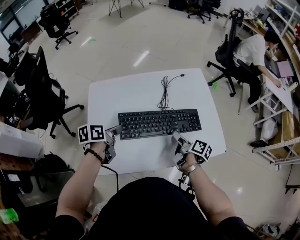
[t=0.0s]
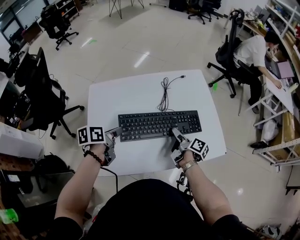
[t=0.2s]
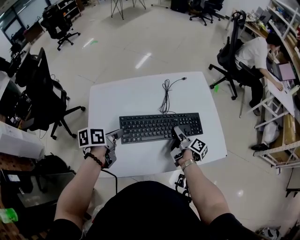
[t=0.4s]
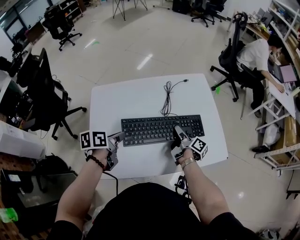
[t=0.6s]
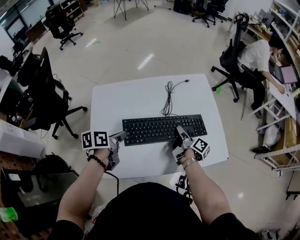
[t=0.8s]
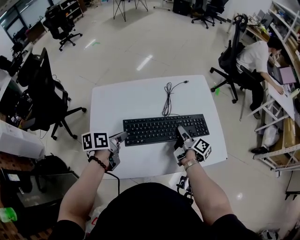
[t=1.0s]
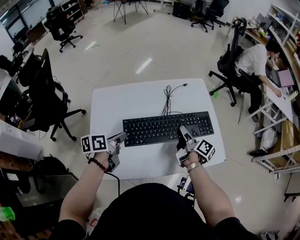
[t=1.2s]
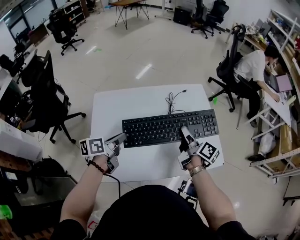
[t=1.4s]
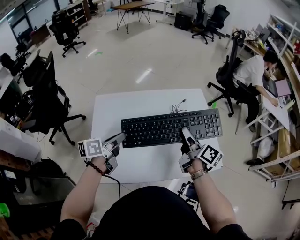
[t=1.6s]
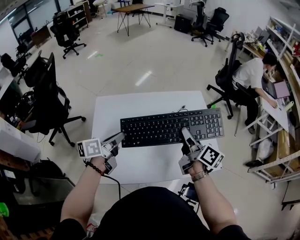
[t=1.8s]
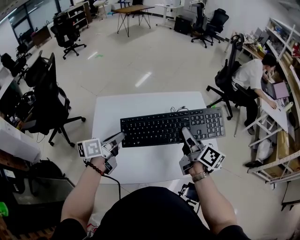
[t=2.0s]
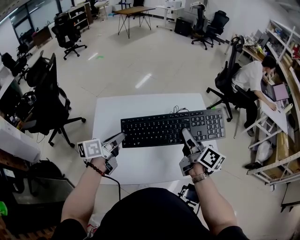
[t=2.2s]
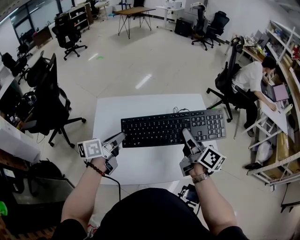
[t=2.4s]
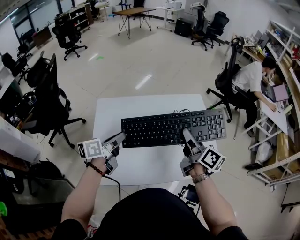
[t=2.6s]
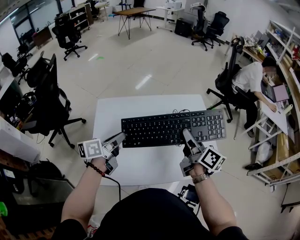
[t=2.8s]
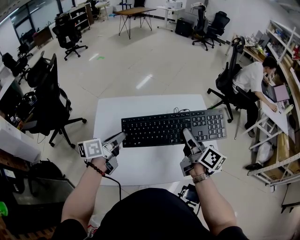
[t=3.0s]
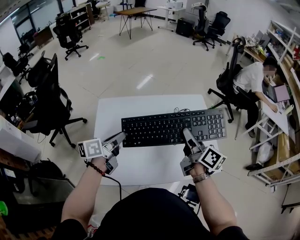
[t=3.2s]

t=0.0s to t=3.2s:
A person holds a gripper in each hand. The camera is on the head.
t=0.0s to t=1.6s: The right gripper moves upward, approximately 15 cm, swivels some 30 degrees, and closes; the left gripper heads upward, covering approximately 5 cm, and changes its angle by some 20 degrees.
t=1.6s to t=3.2s: The right gripper moves approximately 5 cm.

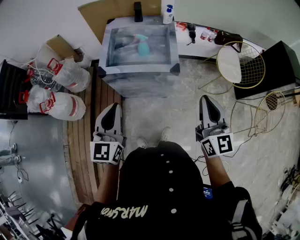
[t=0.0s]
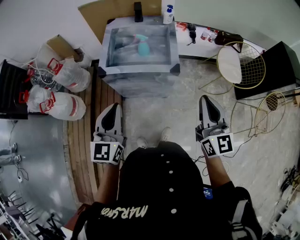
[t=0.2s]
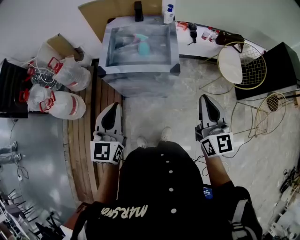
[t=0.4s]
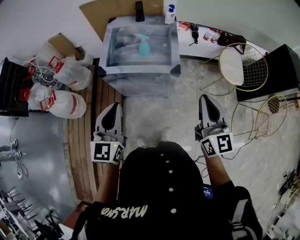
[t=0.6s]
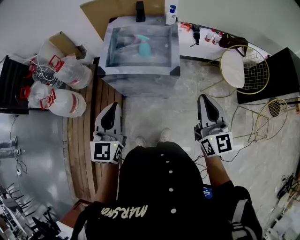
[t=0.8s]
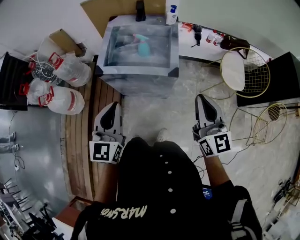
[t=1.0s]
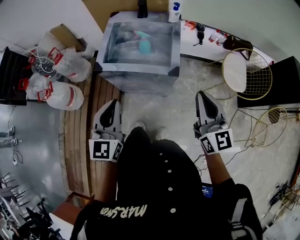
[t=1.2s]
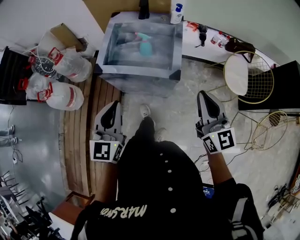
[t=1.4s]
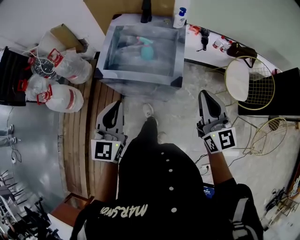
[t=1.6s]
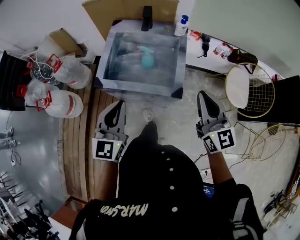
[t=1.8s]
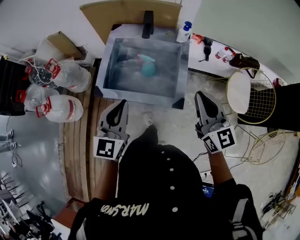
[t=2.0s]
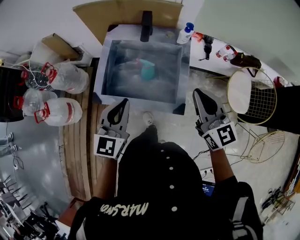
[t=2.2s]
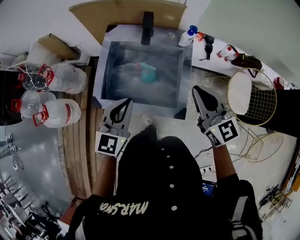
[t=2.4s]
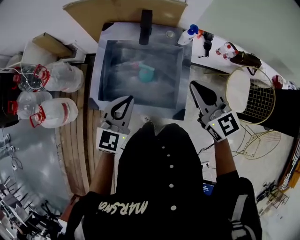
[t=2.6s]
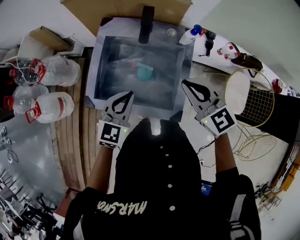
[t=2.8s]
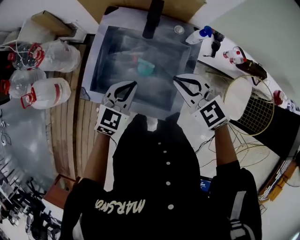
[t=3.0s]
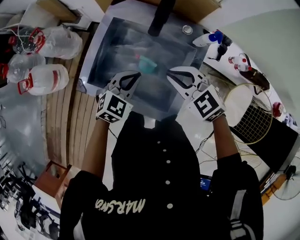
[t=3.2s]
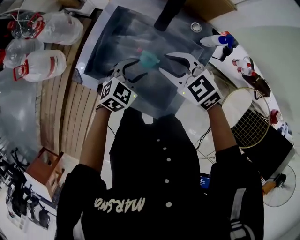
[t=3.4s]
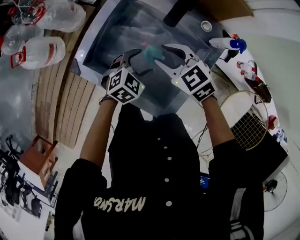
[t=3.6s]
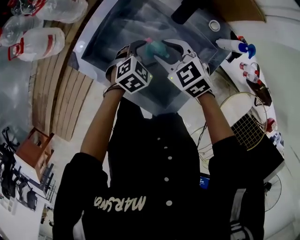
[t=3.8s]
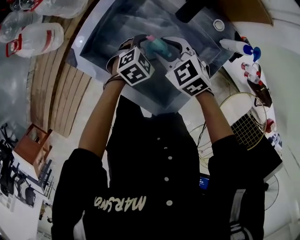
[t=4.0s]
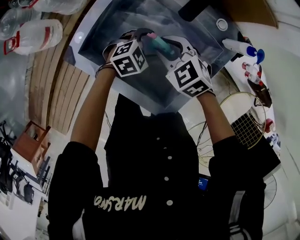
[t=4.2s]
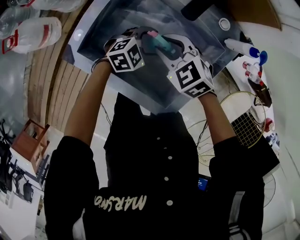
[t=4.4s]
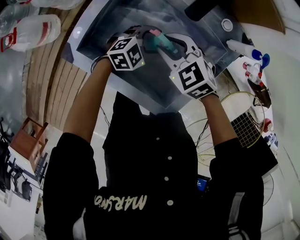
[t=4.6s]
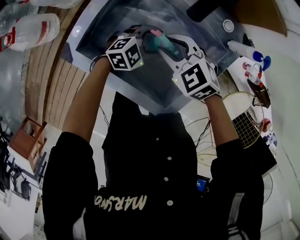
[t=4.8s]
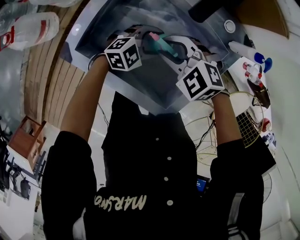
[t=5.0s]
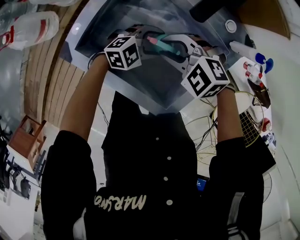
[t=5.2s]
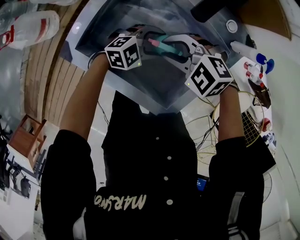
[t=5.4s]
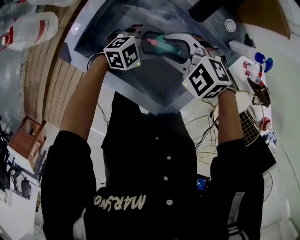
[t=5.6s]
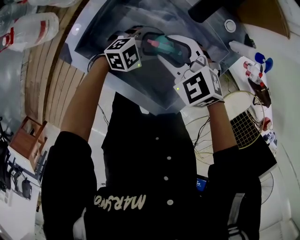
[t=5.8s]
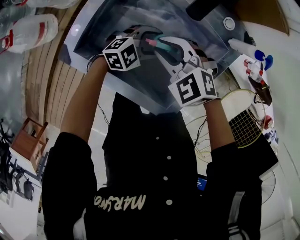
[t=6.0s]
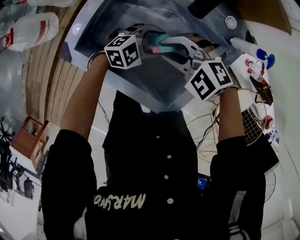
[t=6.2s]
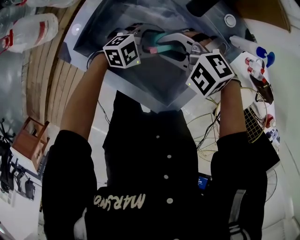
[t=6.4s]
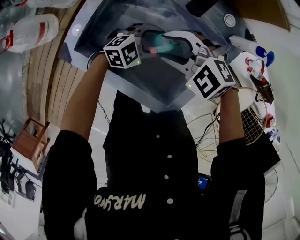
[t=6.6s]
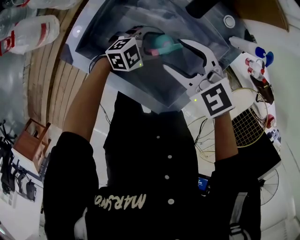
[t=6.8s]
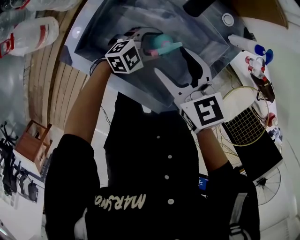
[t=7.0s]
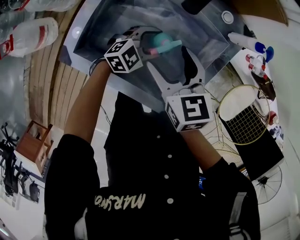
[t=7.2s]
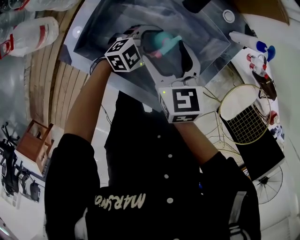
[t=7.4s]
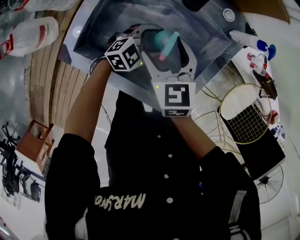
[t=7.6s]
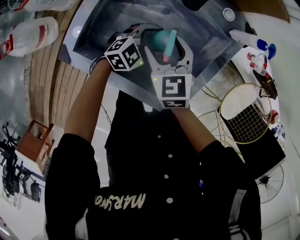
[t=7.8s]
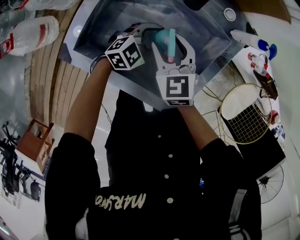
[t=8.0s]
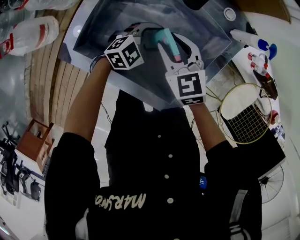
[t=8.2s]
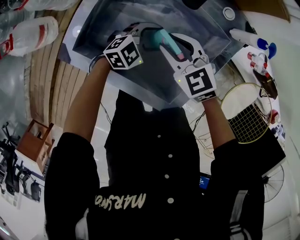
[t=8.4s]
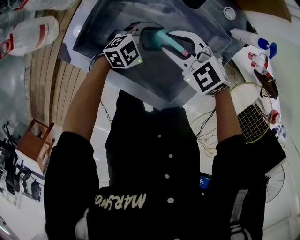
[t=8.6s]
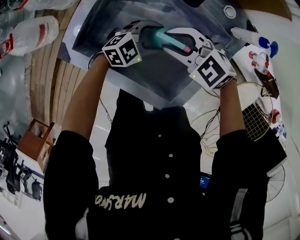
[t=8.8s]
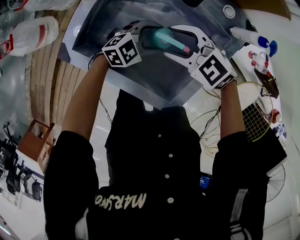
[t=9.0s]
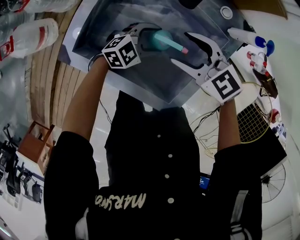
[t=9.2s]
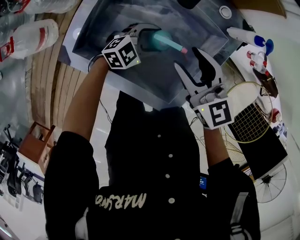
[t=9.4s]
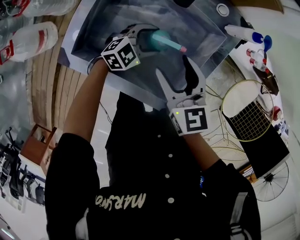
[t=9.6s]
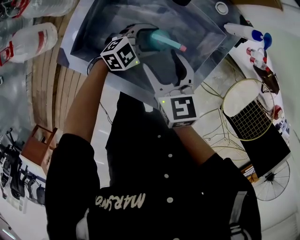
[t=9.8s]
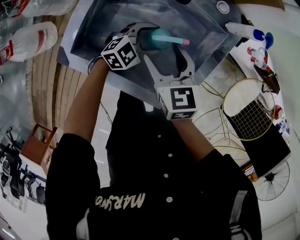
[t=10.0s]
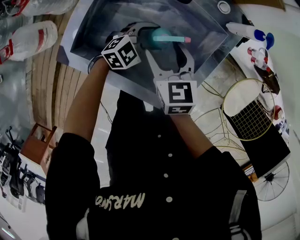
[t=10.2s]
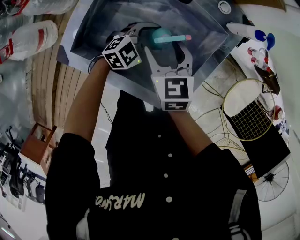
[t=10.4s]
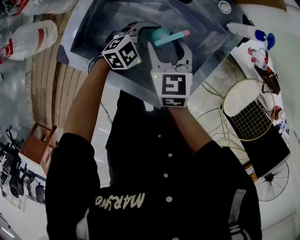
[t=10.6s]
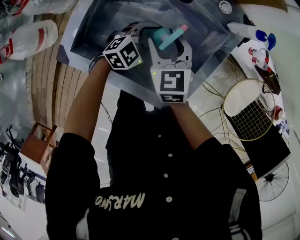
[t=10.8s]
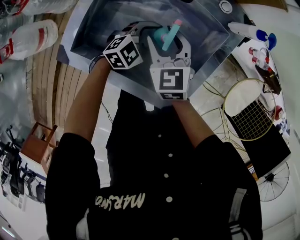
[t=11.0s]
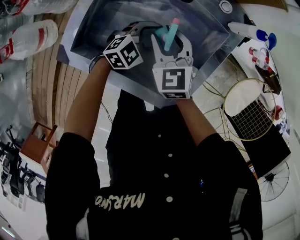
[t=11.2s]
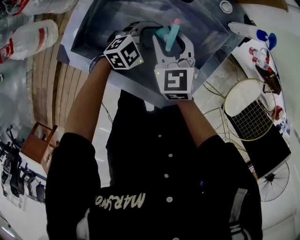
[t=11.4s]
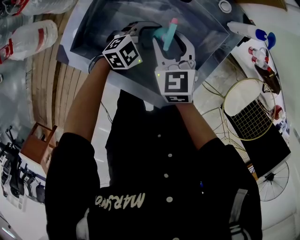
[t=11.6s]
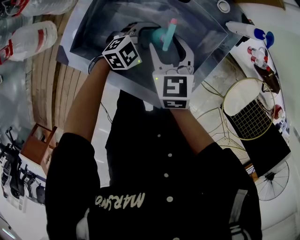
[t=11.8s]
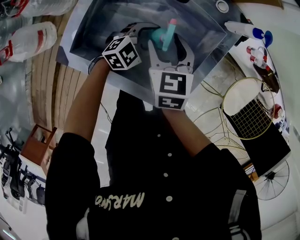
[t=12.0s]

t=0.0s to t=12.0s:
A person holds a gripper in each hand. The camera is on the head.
t=0.0s to t=1.6s: The left gripper moves forward and to the right, approximately 10 cm, while the right gripper is displaced forward by some 15 cm.
t=1.6s to t=3.0s: The left gripper shifts roughly 35 cm forward and downward, and rotates roughly 30 degrees. Meanwhile the right gripper heads forward, covering some 30 cm, and angles its fingers downward, by approximately 30 degrees.
t=3.0s to t=4.4s: The grippers both shift downward by roughly 20 cm. The left gripper rotates some 20 degrees, and opens up; the right gripper turns by some 20 degrees.
t=6.0s to t=7.6s: The right gripper rolls clockwise, seen from behind, by roughly 40 degrees, and opens.
t=7.6s to t=9.0s: The right gripper swivels about 50 degrees.
t=9.0s to t=10.4s: The right gripper travels upward and back again, approximately 10 cm each way, and turns by approximately 60 degrees.
t=10.4s to t=12.0s: The grippers move only a little.

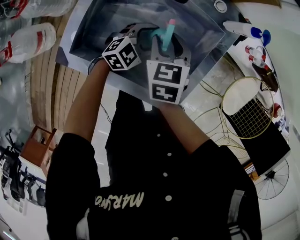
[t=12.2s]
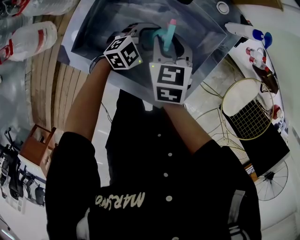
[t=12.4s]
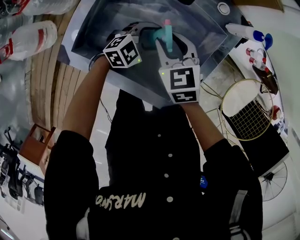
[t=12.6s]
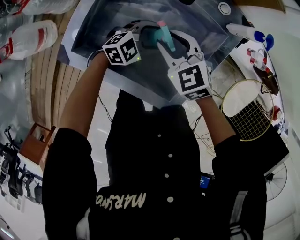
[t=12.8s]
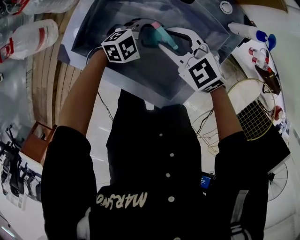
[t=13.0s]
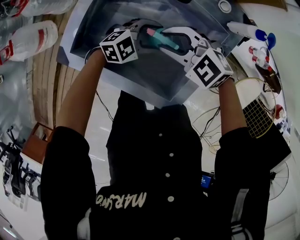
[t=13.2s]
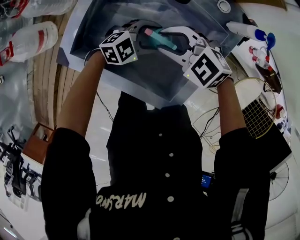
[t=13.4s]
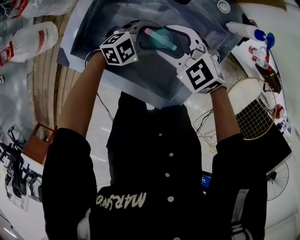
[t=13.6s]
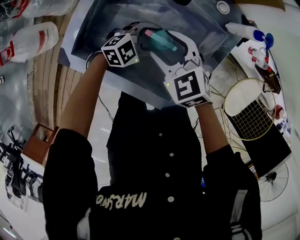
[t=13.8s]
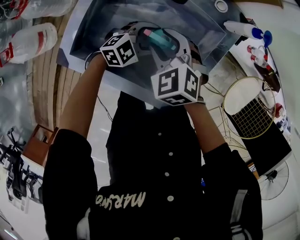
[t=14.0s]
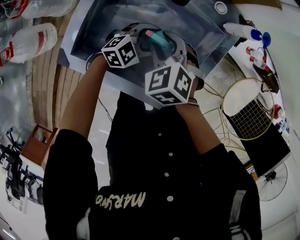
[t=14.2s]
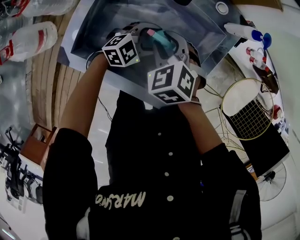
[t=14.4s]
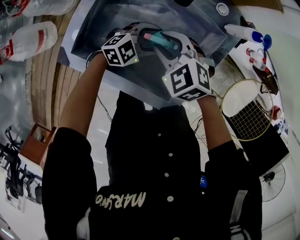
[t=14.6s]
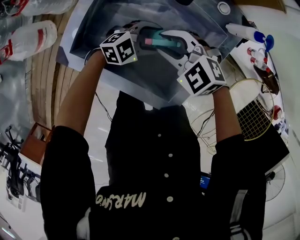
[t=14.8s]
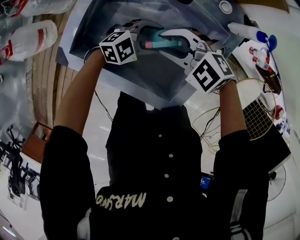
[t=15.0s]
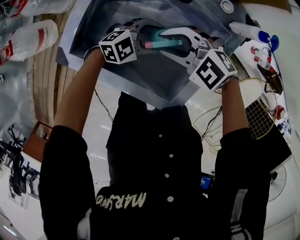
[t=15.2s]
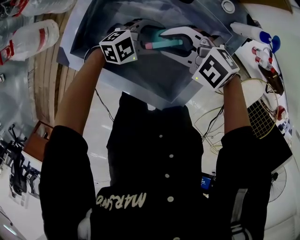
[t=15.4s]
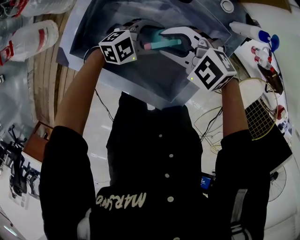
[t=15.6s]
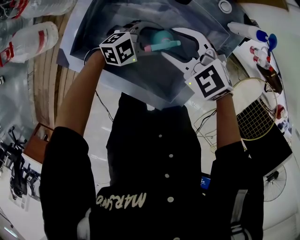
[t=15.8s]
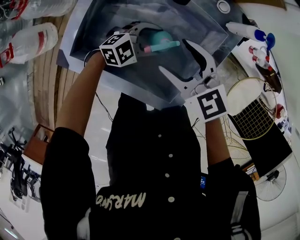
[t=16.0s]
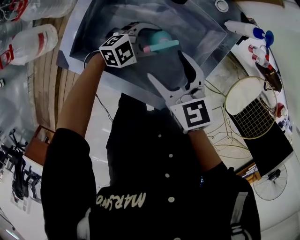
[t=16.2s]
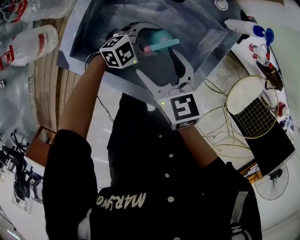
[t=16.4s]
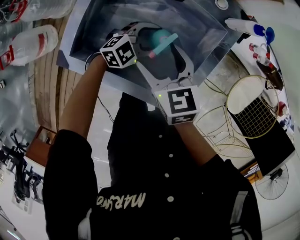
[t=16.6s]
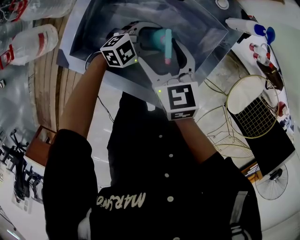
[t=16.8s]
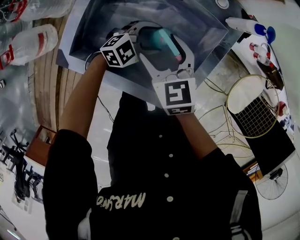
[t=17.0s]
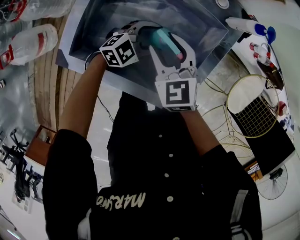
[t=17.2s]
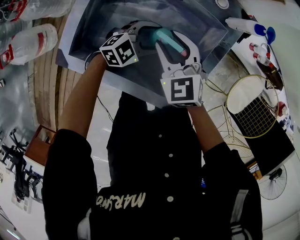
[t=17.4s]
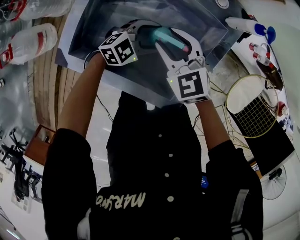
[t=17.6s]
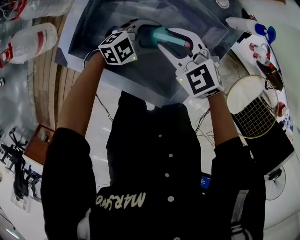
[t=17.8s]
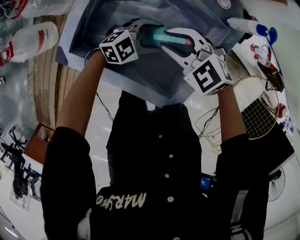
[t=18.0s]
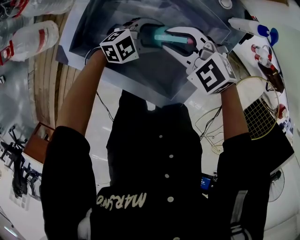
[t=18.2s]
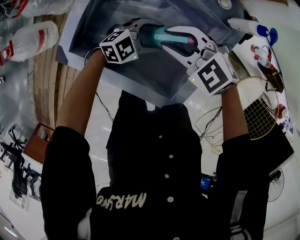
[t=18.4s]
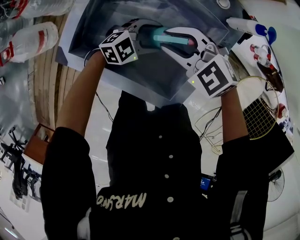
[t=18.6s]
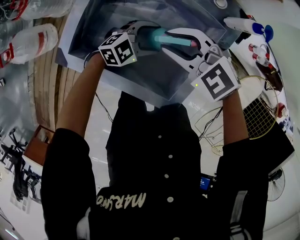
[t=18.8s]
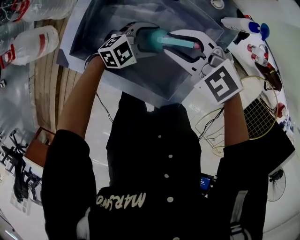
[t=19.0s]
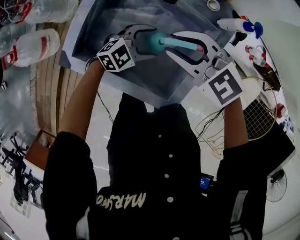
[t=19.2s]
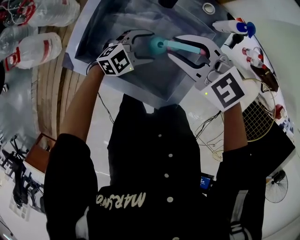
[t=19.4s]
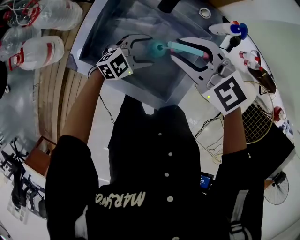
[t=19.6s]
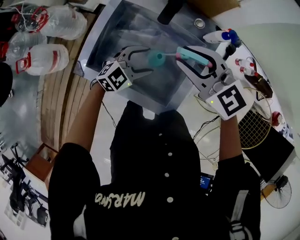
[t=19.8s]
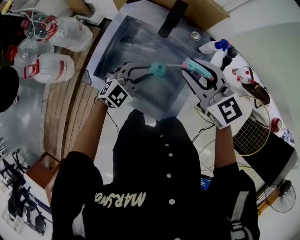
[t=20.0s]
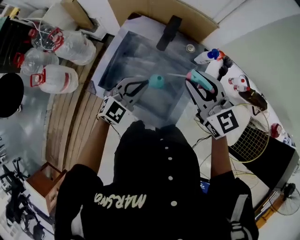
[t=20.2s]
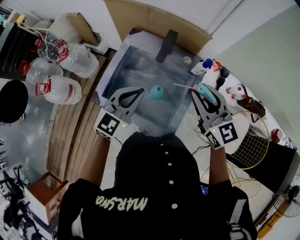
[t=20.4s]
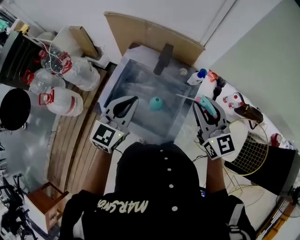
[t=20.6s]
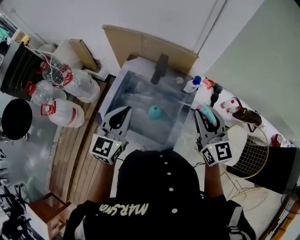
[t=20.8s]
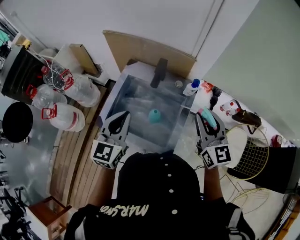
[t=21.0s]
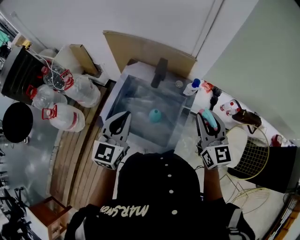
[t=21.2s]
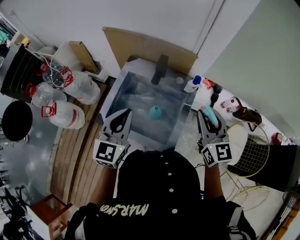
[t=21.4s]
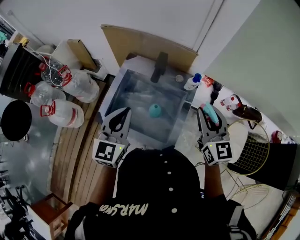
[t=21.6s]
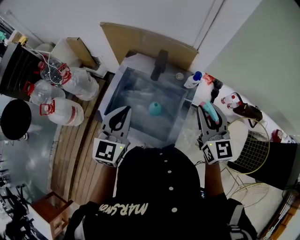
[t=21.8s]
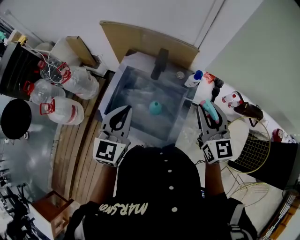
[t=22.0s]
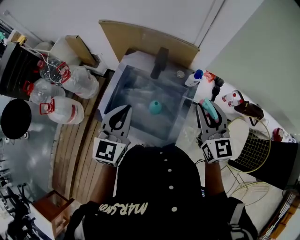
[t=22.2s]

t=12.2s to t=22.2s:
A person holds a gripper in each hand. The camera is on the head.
t=12.2s to t=13.6s: The right gripper swivels some 60 degrees.
t=15.0s to t=16.4s: The right gripper twists some 50 degrees clockwise, seen from behind, and opens.
t=16.4s to t=18.0s: The right gripper twists approximately 40 degrees counterclockwise, seen from behind, and closes.
t=18.0s to t=19.4s: The right gripper goes some 10 cm upward.
t=19.4s to t=20.8s: The left gripper heads upward, covering about 35 cm, rotates some 50 degrees, and closes, while the right gripper travels upward by approximately 20 cm, and rotates some 60 degrees.
t=20.8s to t=22.2s: The grippers move only a little.
